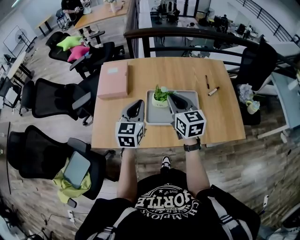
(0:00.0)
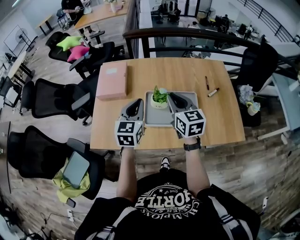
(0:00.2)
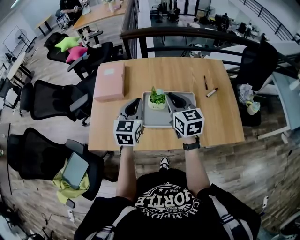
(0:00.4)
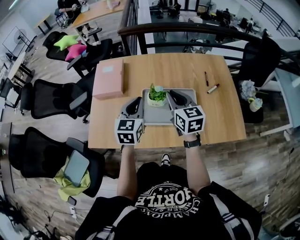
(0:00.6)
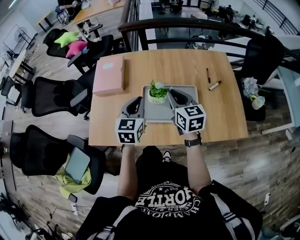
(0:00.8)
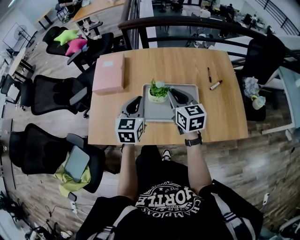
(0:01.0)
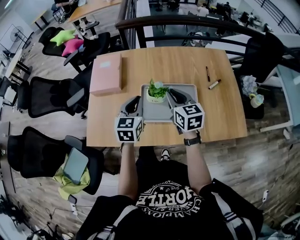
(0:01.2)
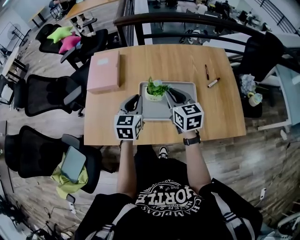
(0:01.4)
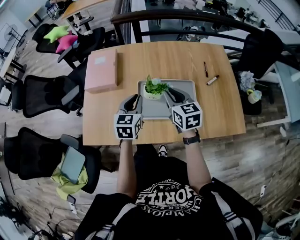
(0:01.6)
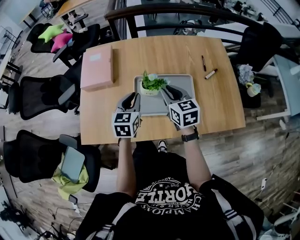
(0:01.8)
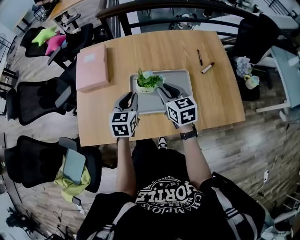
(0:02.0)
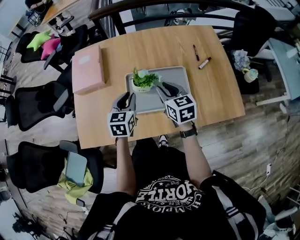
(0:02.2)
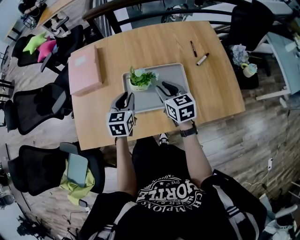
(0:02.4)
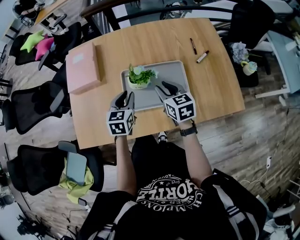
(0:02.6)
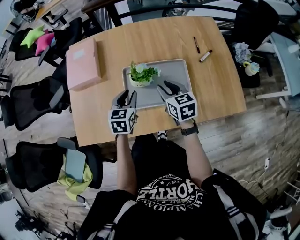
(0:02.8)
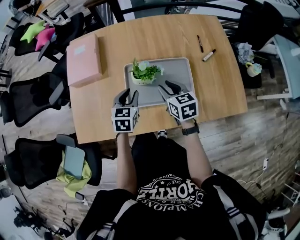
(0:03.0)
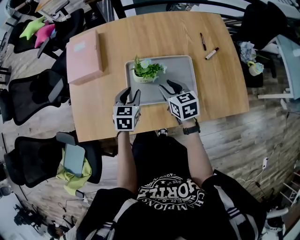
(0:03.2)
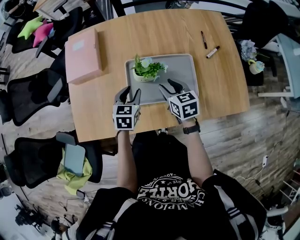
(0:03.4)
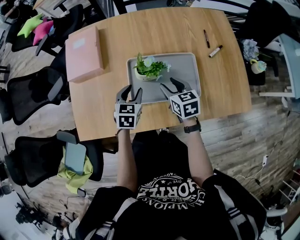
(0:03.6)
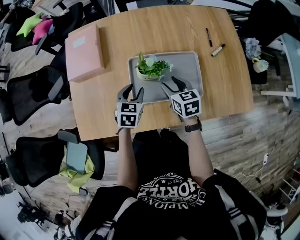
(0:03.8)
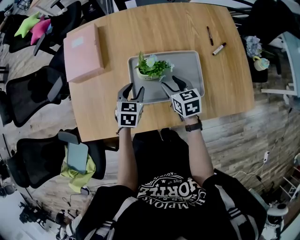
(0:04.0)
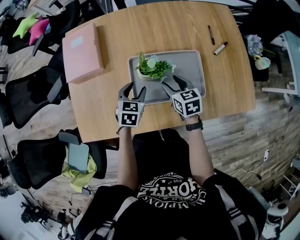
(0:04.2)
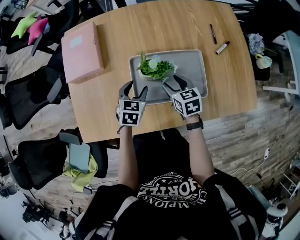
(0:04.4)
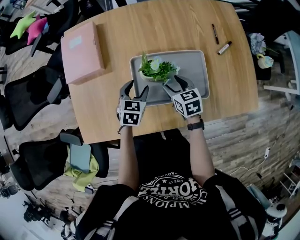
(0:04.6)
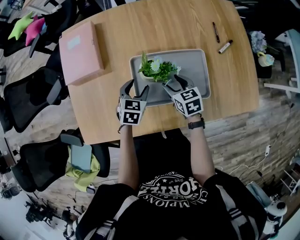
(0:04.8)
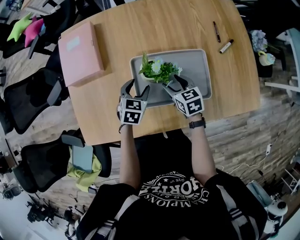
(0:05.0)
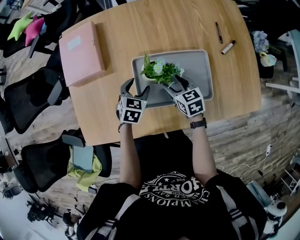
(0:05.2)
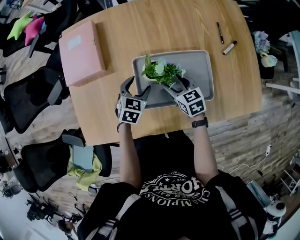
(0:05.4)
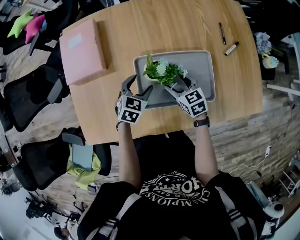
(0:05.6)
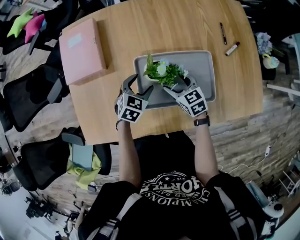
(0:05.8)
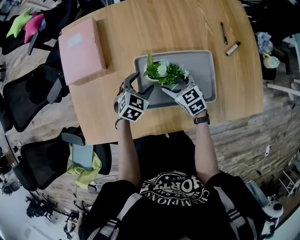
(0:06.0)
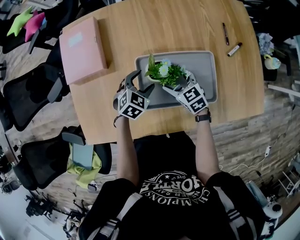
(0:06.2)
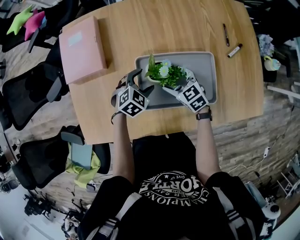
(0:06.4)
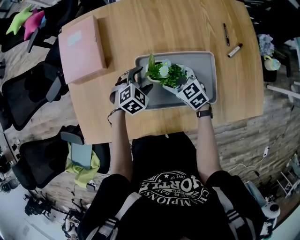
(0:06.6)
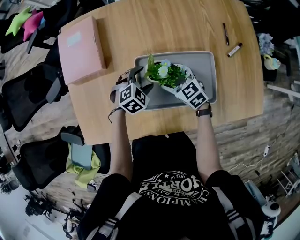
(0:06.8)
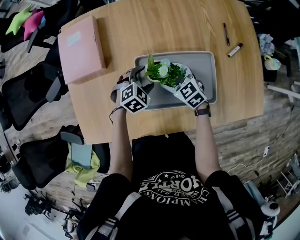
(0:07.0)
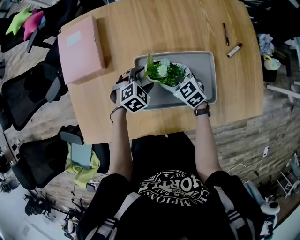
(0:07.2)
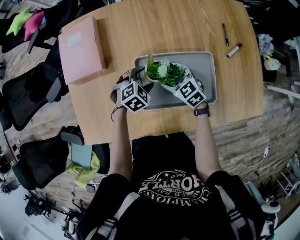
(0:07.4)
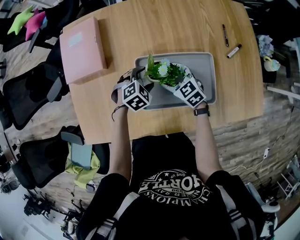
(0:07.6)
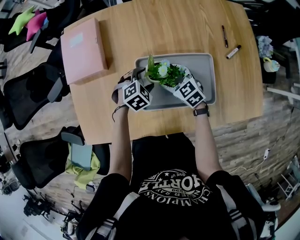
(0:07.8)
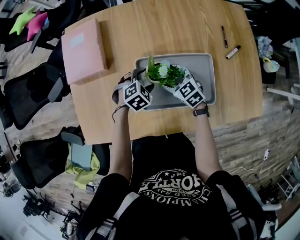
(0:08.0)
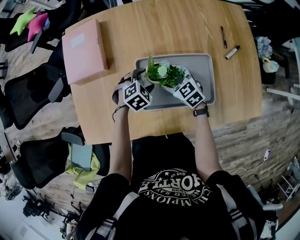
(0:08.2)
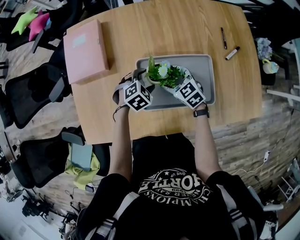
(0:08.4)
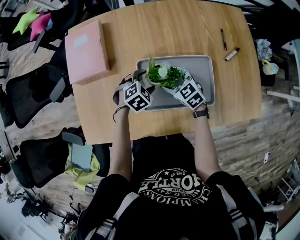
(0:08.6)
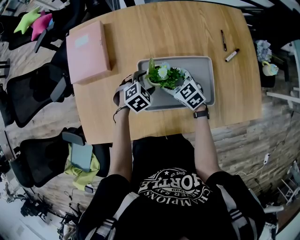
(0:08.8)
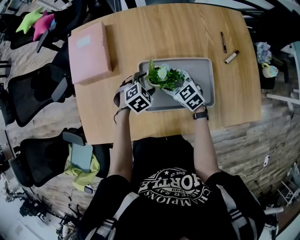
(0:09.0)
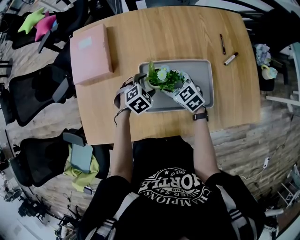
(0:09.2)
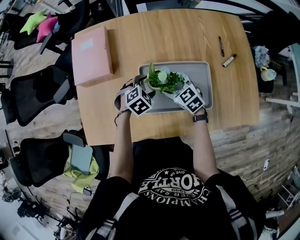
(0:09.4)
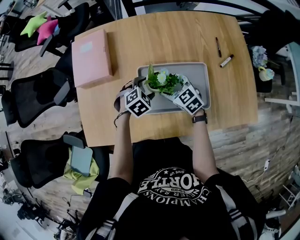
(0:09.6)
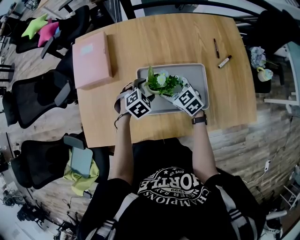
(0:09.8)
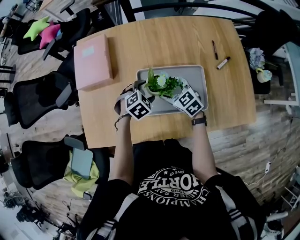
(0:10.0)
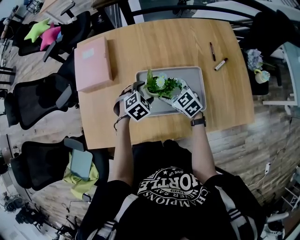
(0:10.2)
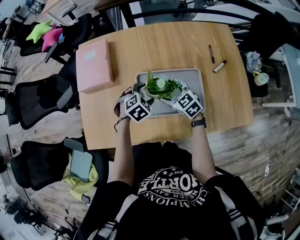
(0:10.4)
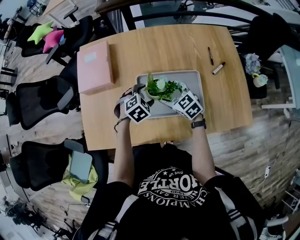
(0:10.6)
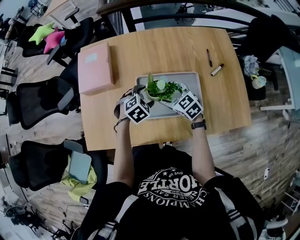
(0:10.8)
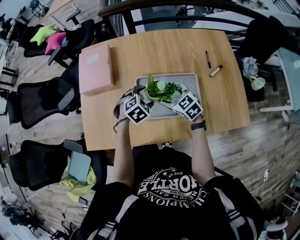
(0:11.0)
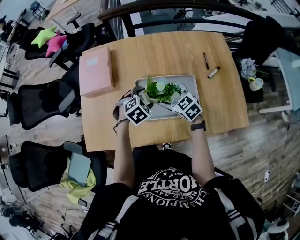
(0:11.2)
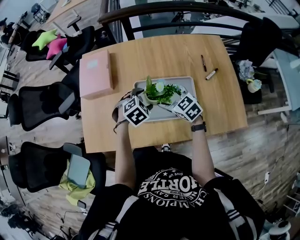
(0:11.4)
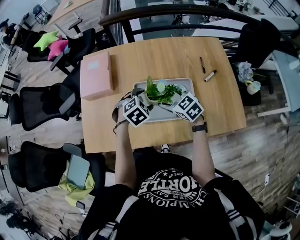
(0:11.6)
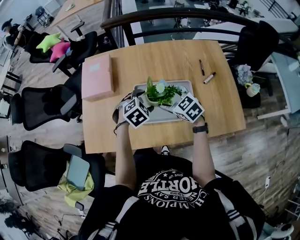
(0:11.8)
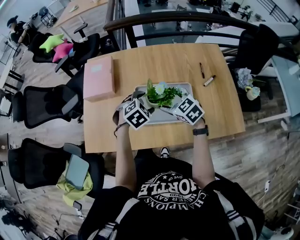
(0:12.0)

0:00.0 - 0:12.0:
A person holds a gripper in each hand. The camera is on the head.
0:00.0 - 0:01.6: The left gripper moves downward and forward, some 10 cm, while the right gripper is displaced downward by about 10 cm.
0:01.6 - 0:03.0: The two grippers go about 10 cm downward.
0:03.0 - 0:04.4: Both grippers move downward, roughly 5 cm. The left gripper opens.
0:04.4 - 0:06.0: The left gripper shifts by roughly 5 cm, and turns by about 20 degrees. The right gripper changes place by about 5 cm, and opens up.
0:06.0 - 0:07.6: The left gripper changes its angle by roughly 20 degrees.
0:07.6 - 0:09.0: The grippers stay close to where they were, moving slightly.
0:09.0 - 0:10.4: Both grippers travel together upward, approximately 5 cm.
0:10.4 - 0:12.0: Both grippers travel together upward, approximately 10 cm.

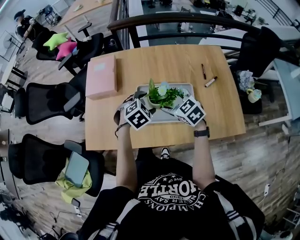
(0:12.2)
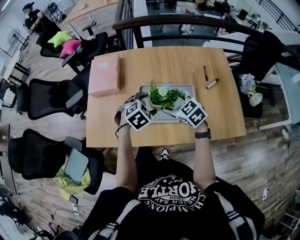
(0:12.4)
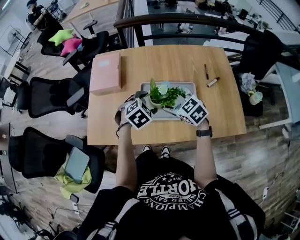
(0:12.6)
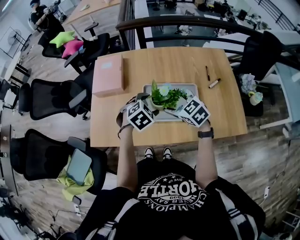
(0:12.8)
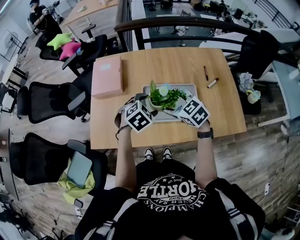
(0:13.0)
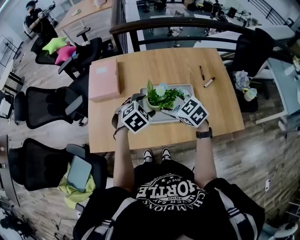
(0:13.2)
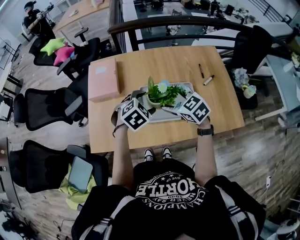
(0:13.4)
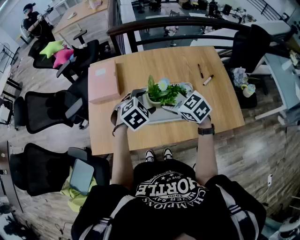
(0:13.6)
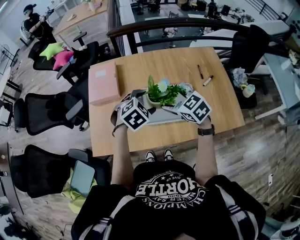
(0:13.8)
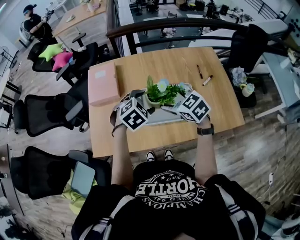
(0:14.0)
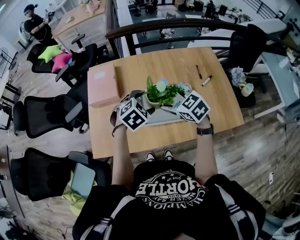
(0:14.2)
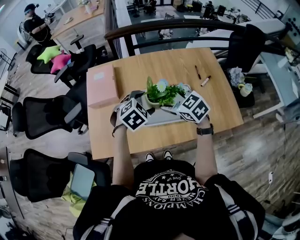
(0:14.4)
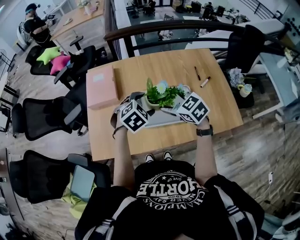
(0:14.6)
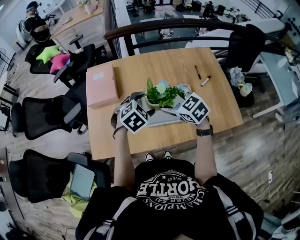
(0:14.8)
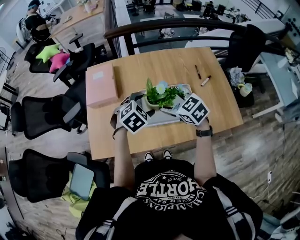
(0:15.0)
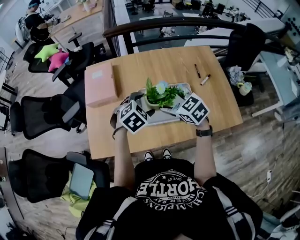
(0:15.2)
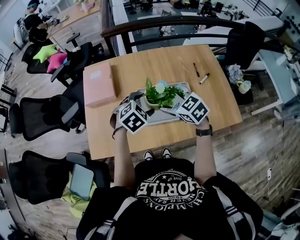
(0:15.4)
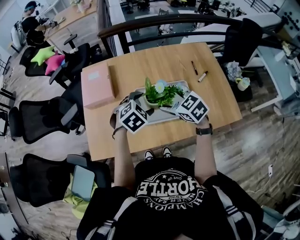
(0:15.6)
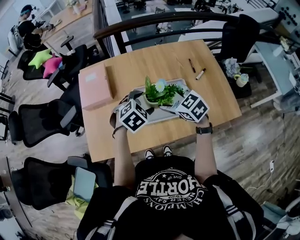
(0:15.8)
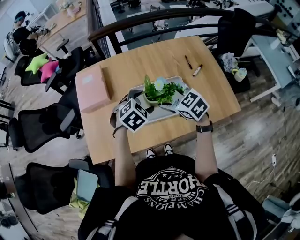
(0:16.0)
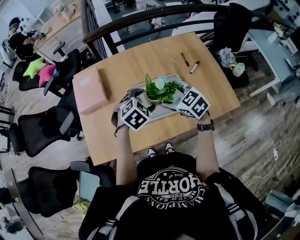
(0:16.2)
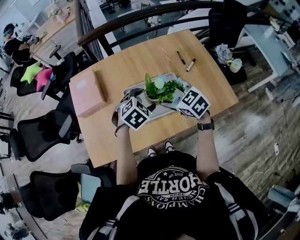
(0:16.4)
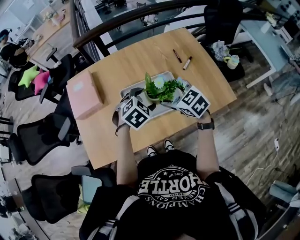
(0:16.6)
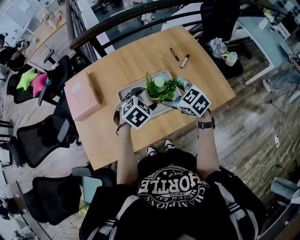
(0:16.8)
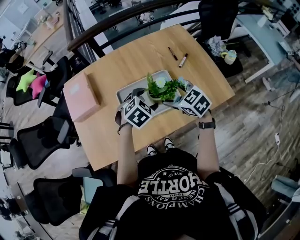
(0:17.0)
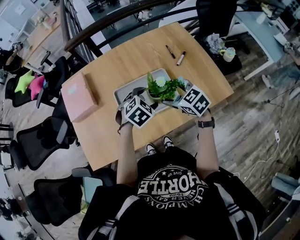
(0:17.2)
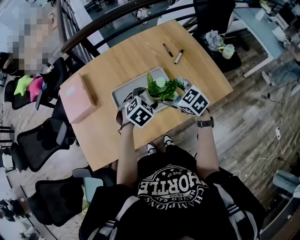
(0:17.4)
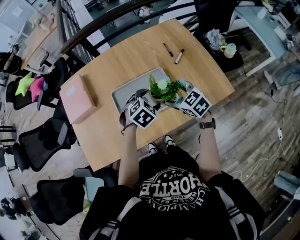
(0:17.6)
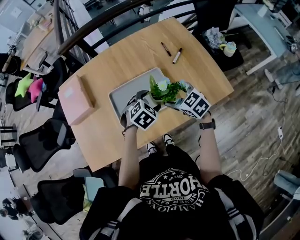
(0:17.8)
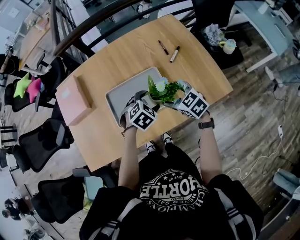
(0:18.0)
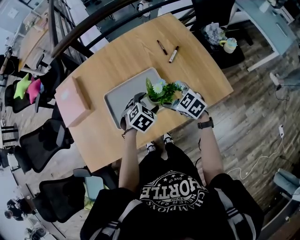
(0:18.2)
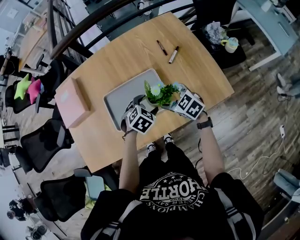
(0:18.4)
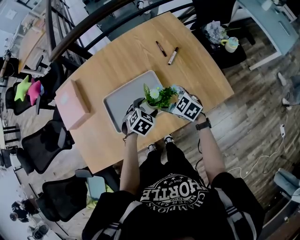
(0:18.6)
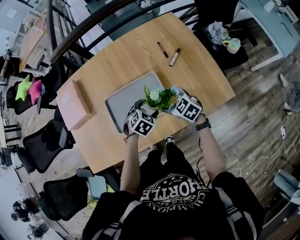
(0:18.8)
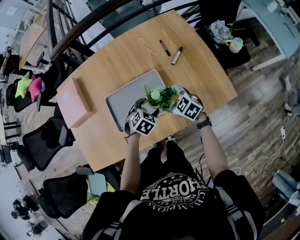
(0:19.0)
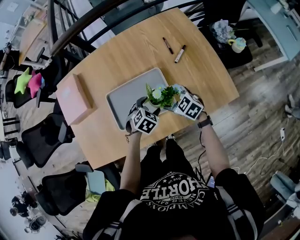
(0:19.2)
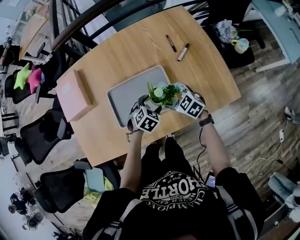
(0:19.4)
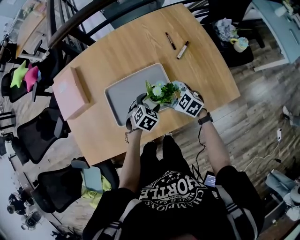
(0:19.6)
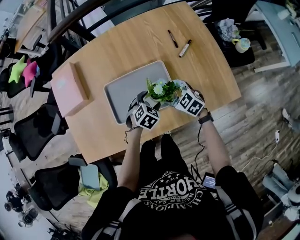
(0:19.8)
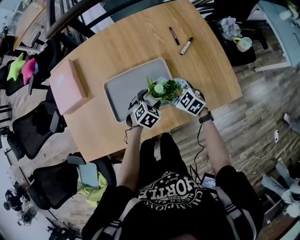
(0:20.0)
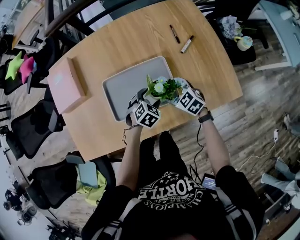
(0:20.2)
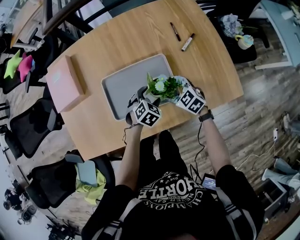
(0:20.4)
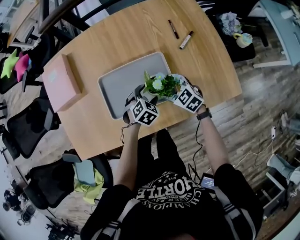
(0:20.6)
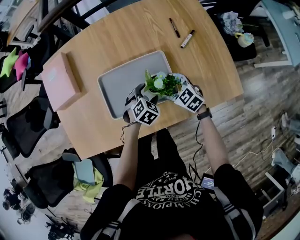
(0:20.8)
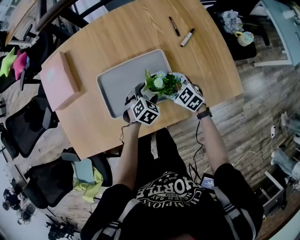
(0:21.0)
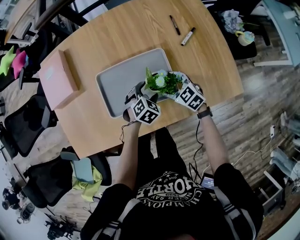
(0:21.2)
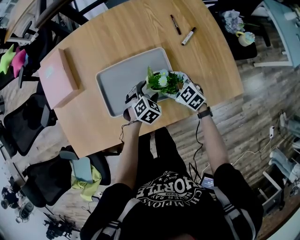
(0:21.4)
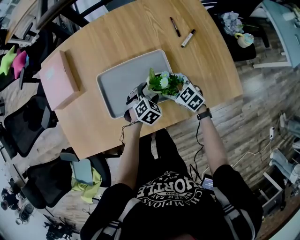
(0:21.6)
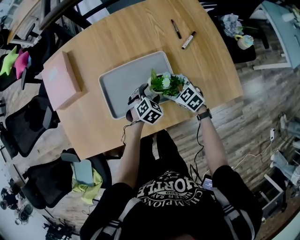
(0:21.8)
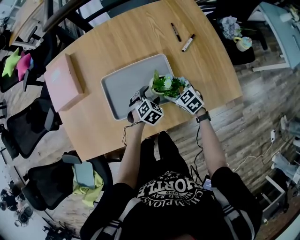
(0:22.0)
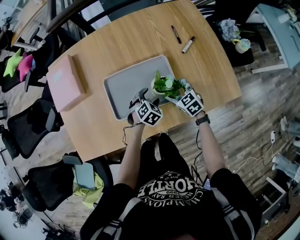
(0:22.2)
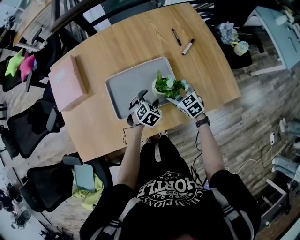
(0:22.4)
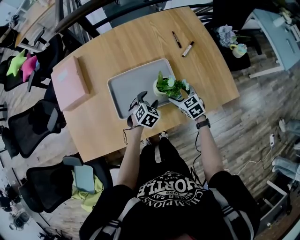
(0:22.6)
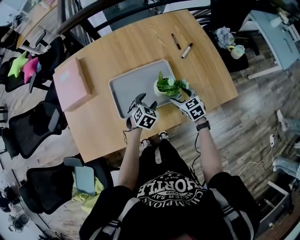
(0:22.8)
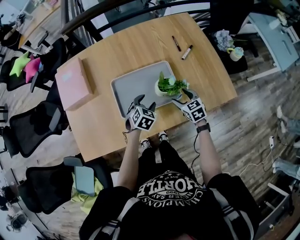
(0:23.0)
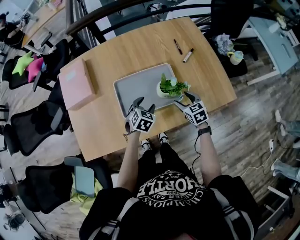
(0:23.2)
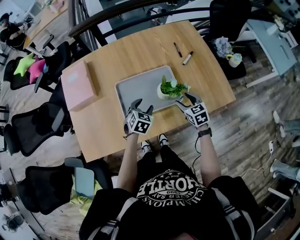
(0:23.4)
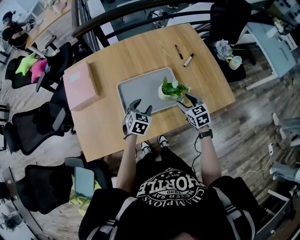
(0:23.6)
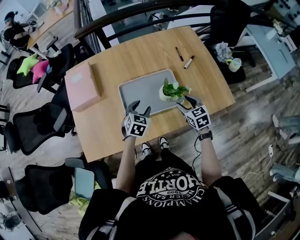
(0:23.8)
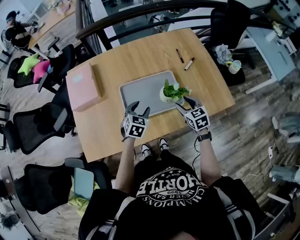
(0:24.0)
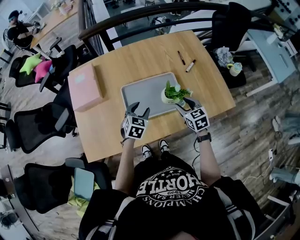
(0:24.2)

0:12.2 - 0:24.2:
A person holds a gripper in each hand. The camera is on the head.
0:12.2 - 0:13.8: The two grippers go approximately 10 cm upward.
0:13.8 - 0:15.2: Both grippers stay about where they are.
0:15.2 - 0:16.6: The two grippers go some 10 cm to the right.
0:16.6 - 0:18.2: Both grippers move to the right and downward, about 15 cm.
0:18.2 - 0:19.8: Both grippers travel together downward, about 10 cm.
0:19.8 - 0:21.2: The right gripper heads downward, covering roughly 5 cm.
0:21.2 - 0:22.6: The left gripper shifts by approximately 5 cm.
0:22.6 - 0:24.2: The left gripper shifts approximately 15 cm upward and to the left. Meanwhile the right gripper heads upward and backward, covering about 15 cm, and closes.
